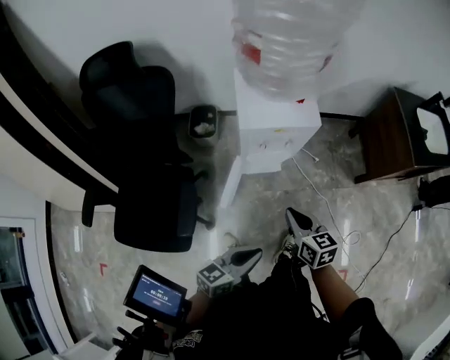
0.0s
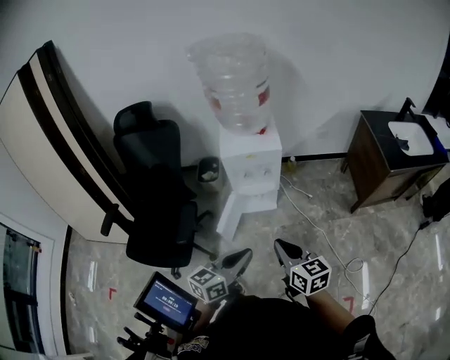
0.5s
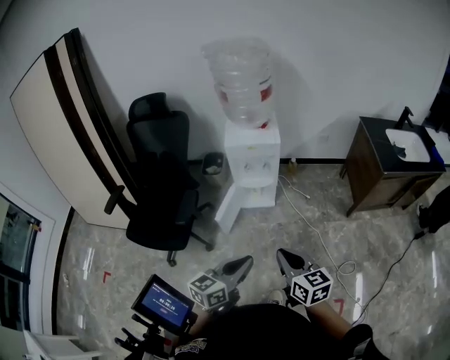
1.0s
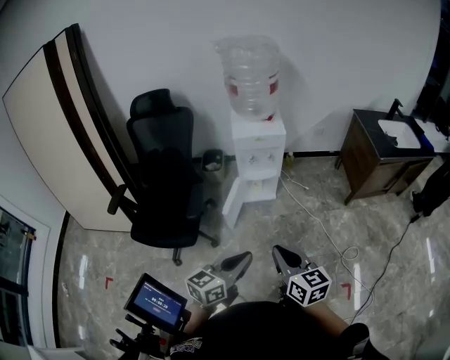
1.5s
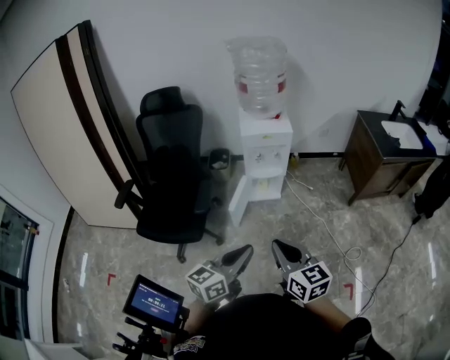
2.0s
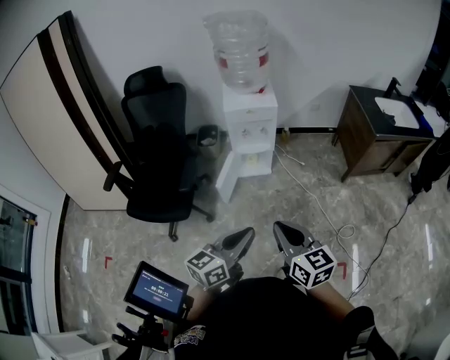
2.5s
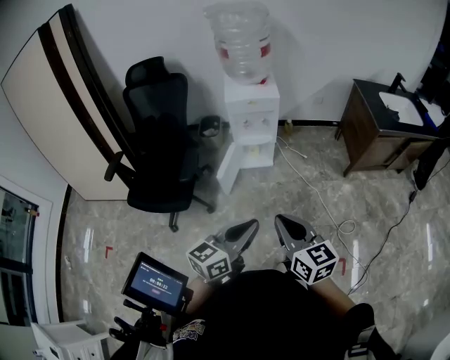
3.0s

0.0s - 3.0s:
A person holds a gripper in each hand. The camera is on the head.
0.0s - 1.5s: Both grippers travel together backward and upward, roughly 30 cm.
1.5s - 3.0s: The two grippers go roughly 5 cm to the right.

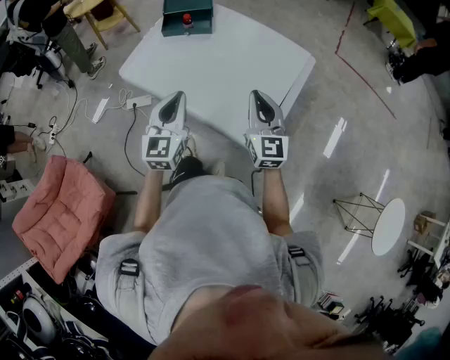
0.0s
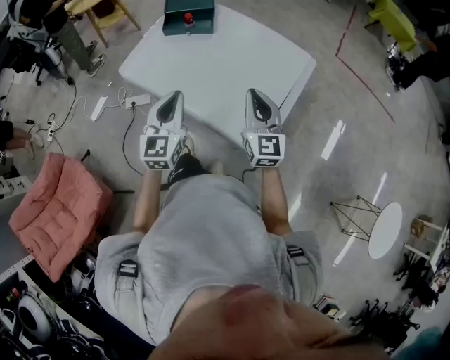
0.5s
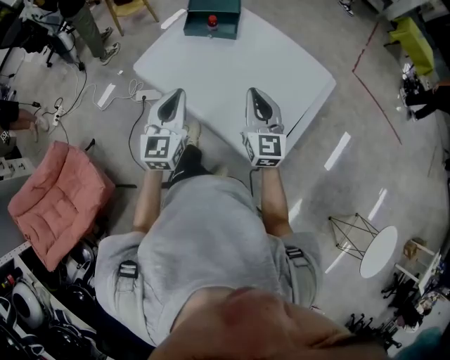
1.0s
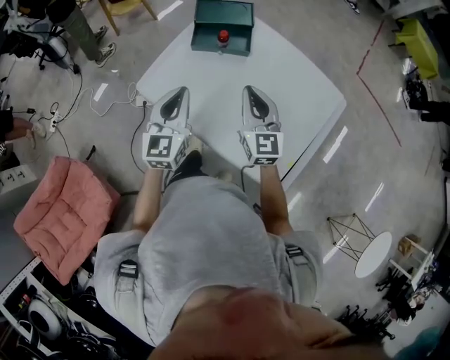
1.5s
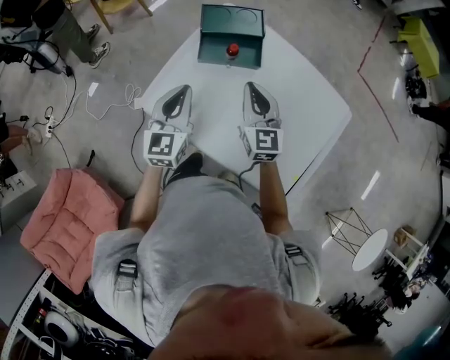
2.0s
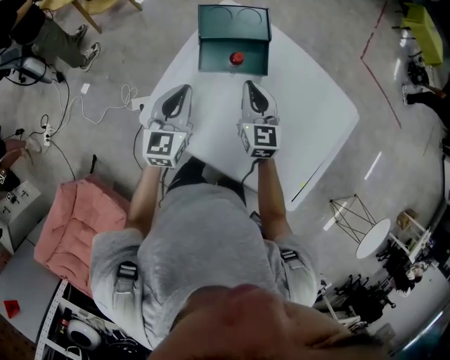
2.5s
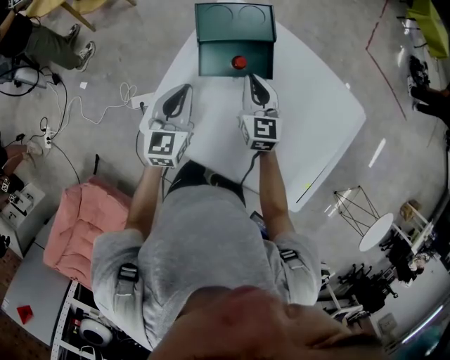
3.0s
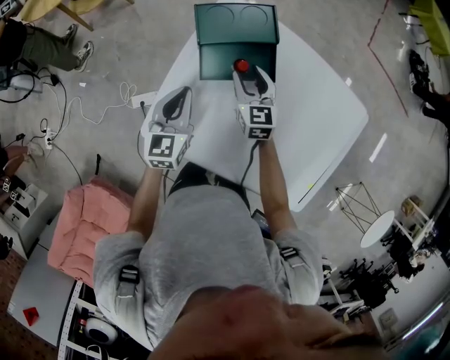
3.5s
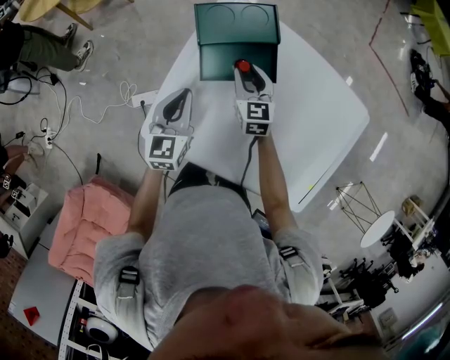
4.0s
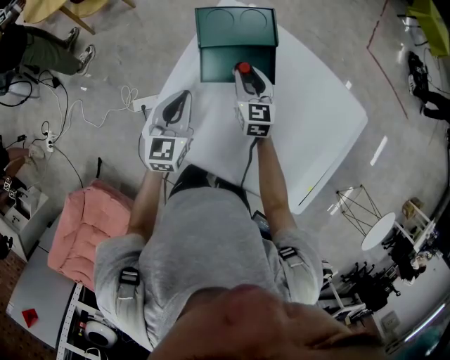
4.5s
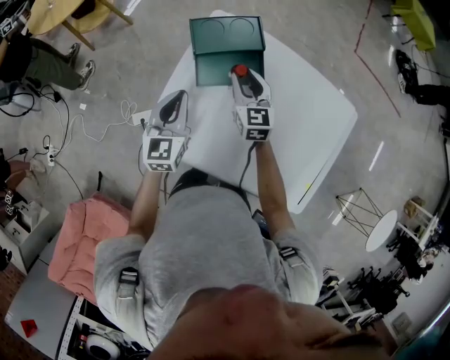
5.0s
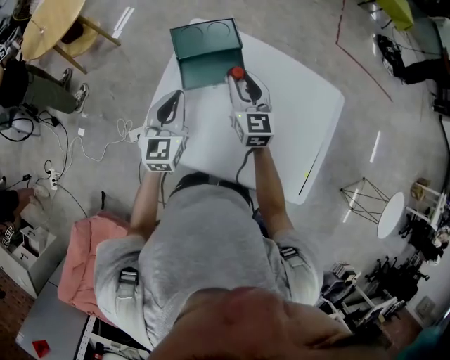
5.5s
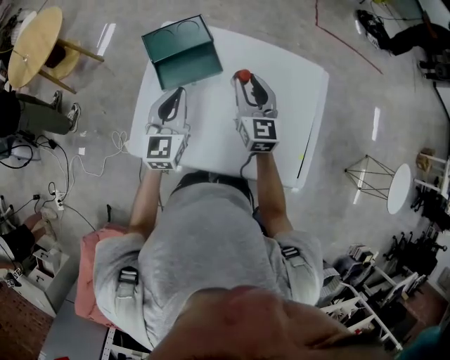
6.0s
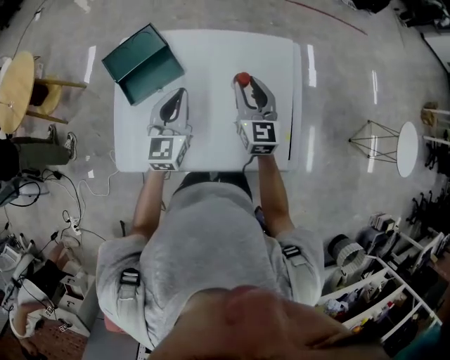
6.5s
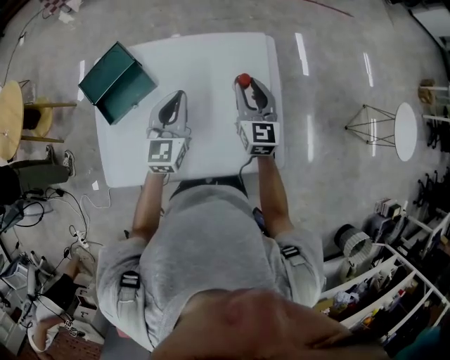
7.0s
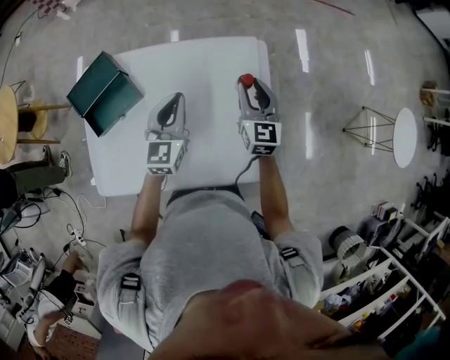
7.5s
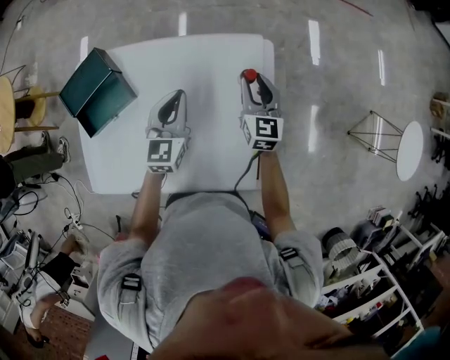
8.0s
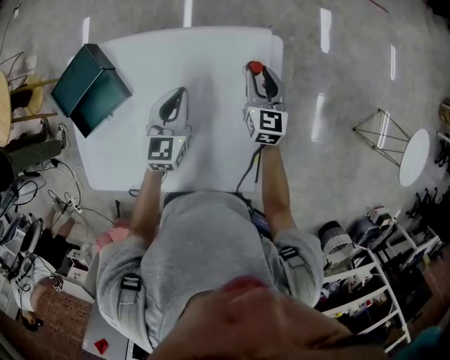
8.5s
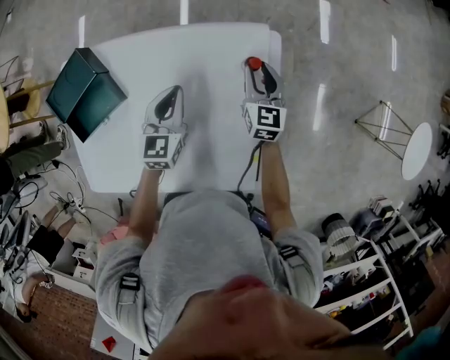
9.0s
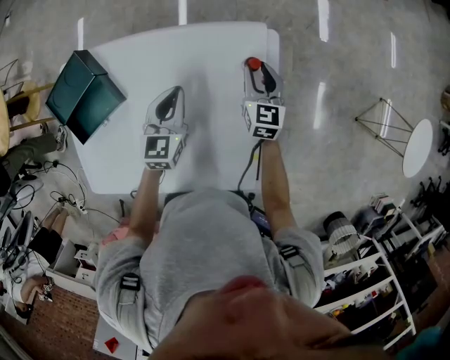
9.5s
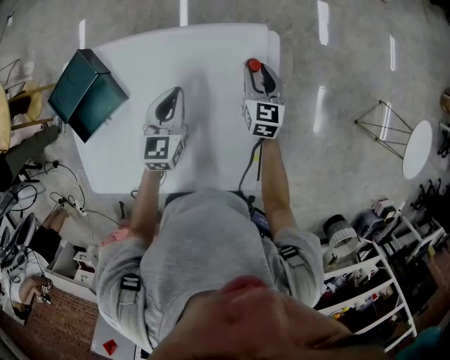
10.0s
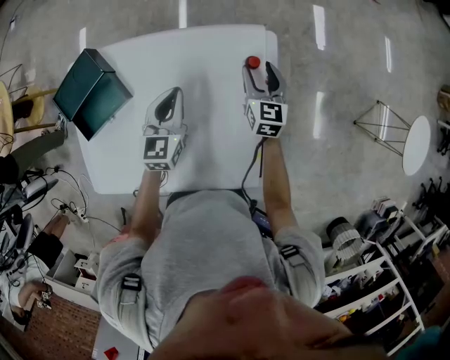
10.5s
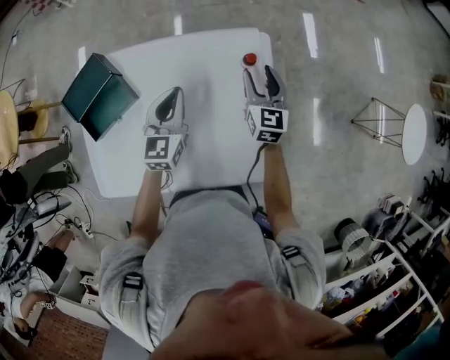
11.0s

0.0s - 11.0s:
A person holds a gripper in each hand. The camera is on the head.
0.0s - 2.0s: Both grippers travel together forward and to the left, approximately 35 cm.
2.0s - 3.5s: Both grippers move forward and downward, about 20 cm. The right gripper opens up.
3.5s - 5.5s: Both grippers move upward, roughly 10 cm.
5.5s - 7.5s: The right gripper changes place by some 40 cm, and rotates roughly 30 degrees, while the left gripper shifts by approximately 40 cm, and turns by some 30 degrees.
7.5s - 9.0s: The two grippers go roughly 15 cm downward and forward.
9.0s - 11.0s: Both grippers travel together upward and backward, roughly 10 cm. The right gripper opens.

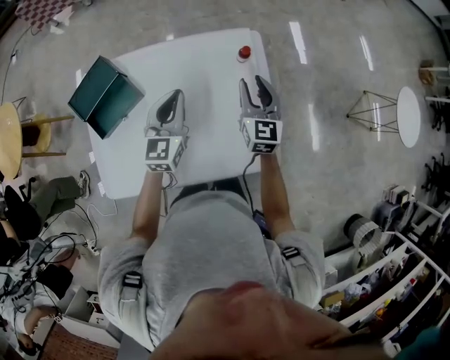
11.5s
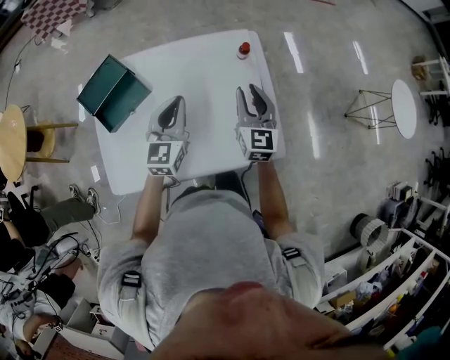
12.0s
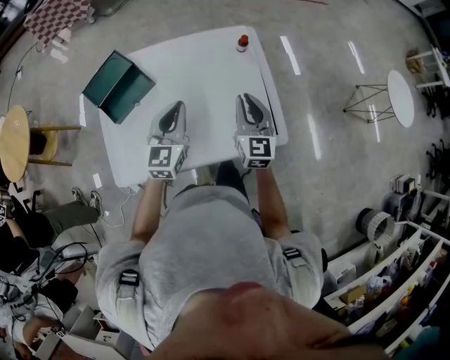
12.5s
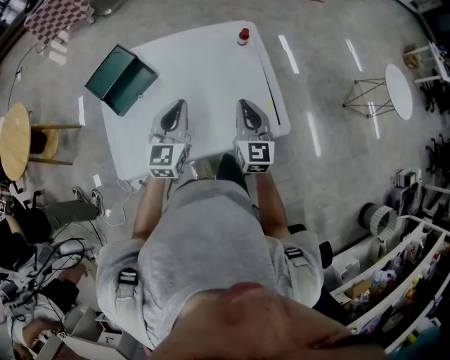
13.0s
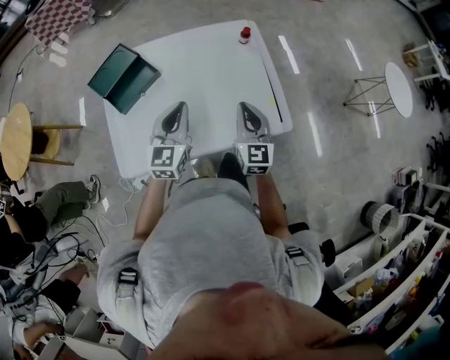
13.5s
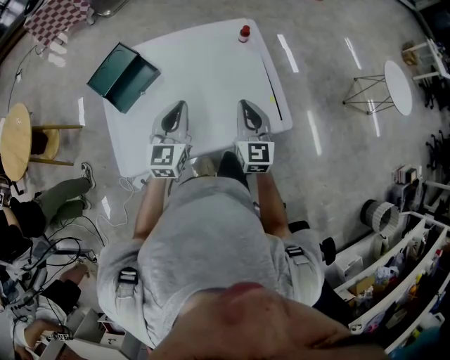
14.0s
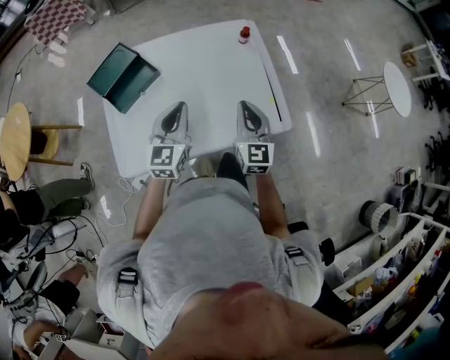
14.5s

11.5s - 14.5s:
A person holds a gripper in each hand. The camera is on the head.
11.5s - 13.0s: The two grippers go about 20 cm backward. The right gripper closes up.
13.0s - 14.5s: The grippers make only small movements.

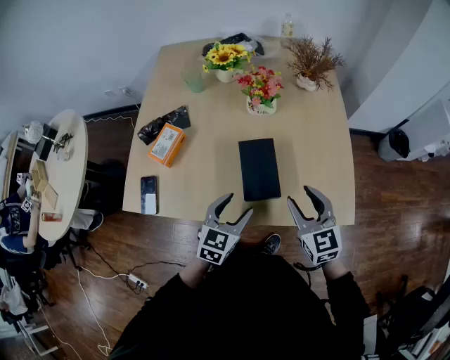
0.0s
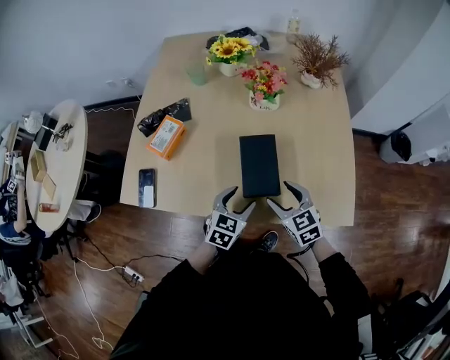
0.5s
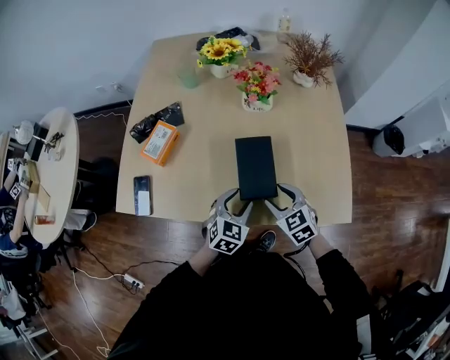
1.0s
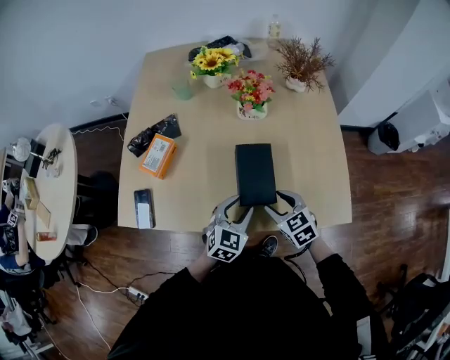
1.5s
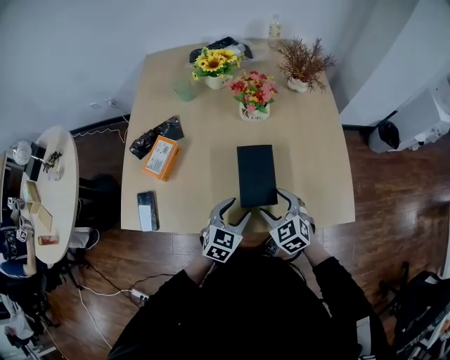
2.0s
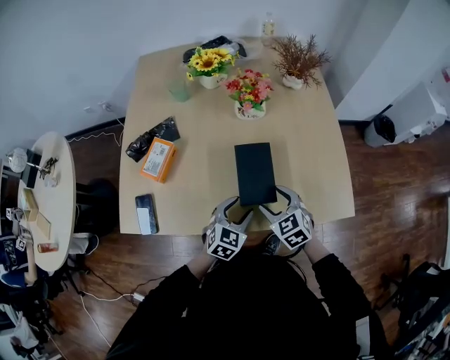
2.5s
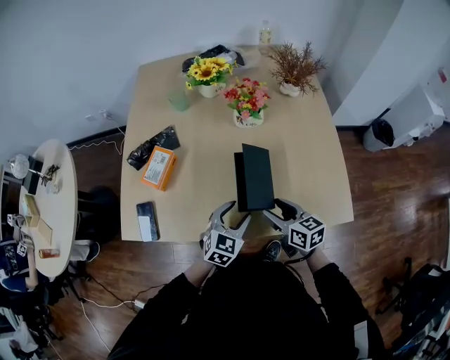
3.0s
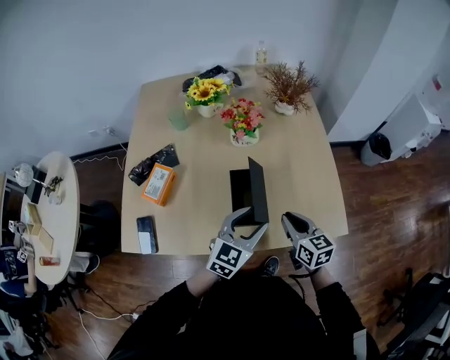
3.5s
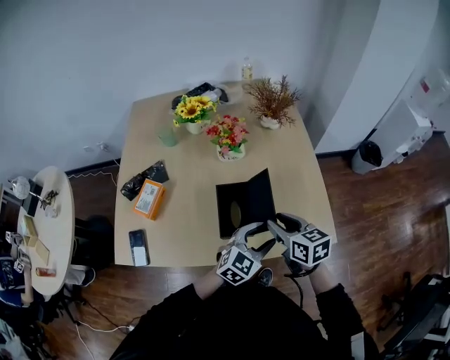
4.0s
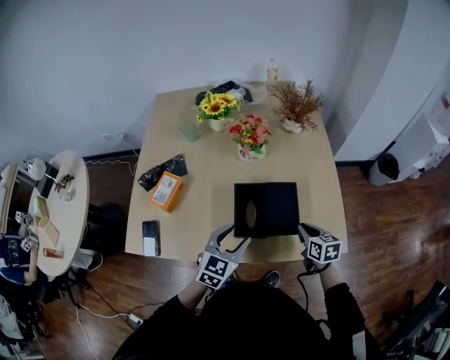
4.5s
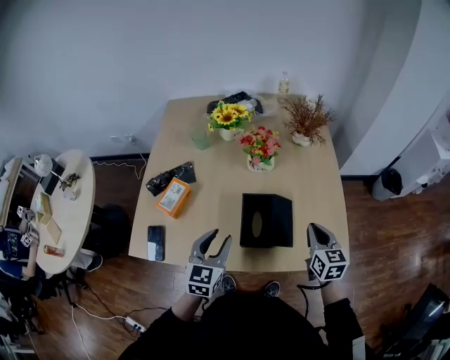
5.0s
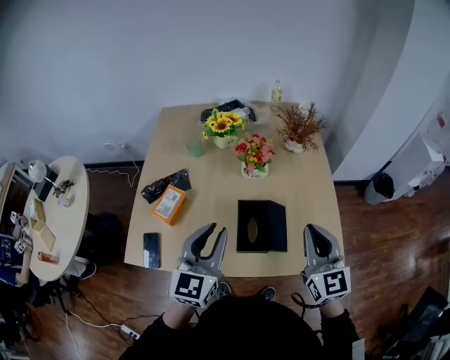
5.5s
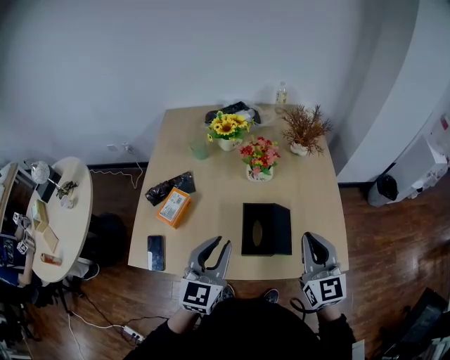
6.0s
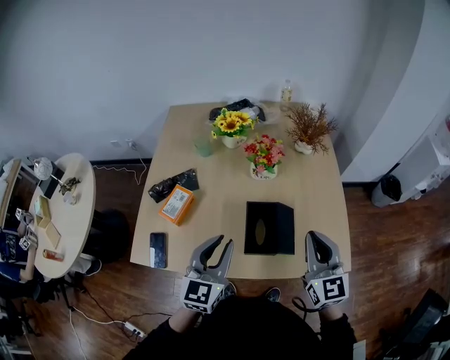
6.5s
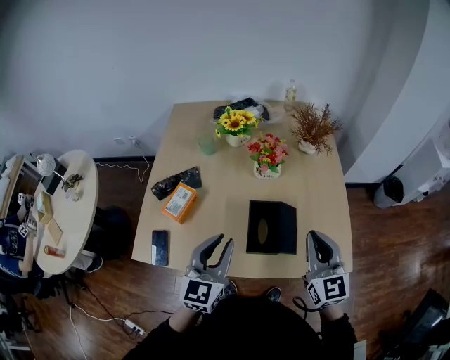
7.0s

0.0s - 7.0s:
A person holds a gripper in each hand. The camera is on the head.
0.0s - 2.0s: The right gripper moves downward and to the left, about 15 cm, turns by about 30 degrees, and opens. The left gripper goes approximately 5 cm downward.
2.0s - 3.5s: The right gripper heads to the right and upward, covering about 10 cm, rotates around the line of its fingers by roughly 40 degrees, clockwise from behind, and closes up, while the left gripper travels upward and to the right by approximately 15 cm.
3.5s - 5.0s: The right gripper goes up and down, approximately 10 cm each way, reversing 2 times, and opens, then closes again. The left gripper shifts some 15 cm to the left, and swivels about 30 degrees.
5.0s - 7.0s: The left gripper travels upward by about 10 cm; the right gripper shifts some 15 cm upward and to the left, and swivels about 30 degrees.

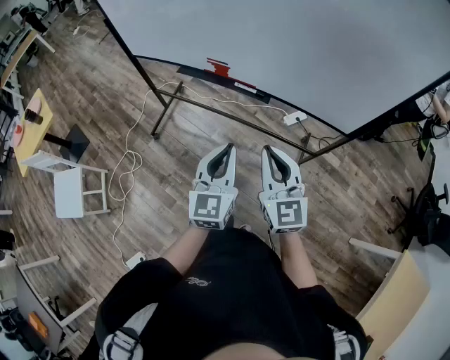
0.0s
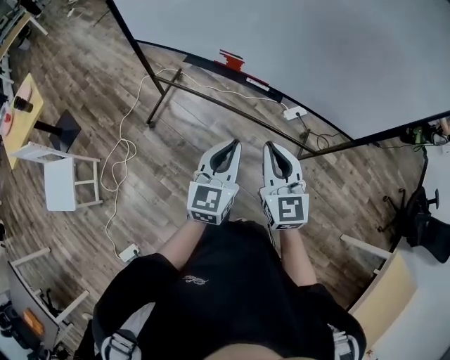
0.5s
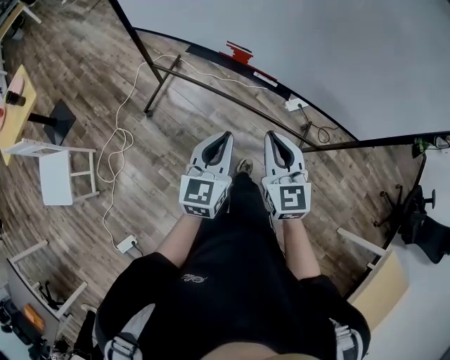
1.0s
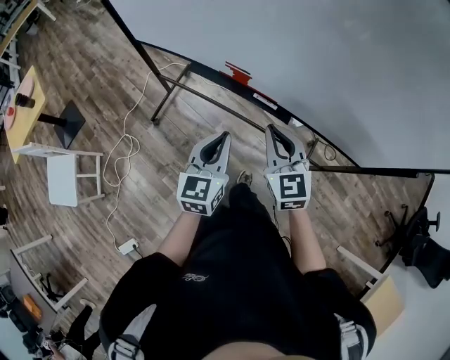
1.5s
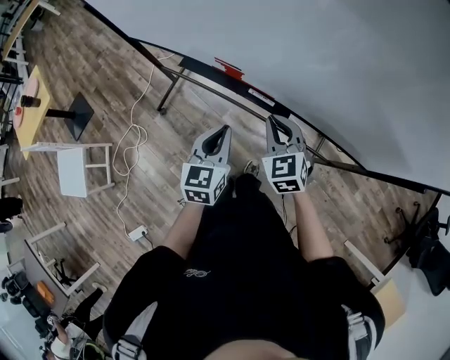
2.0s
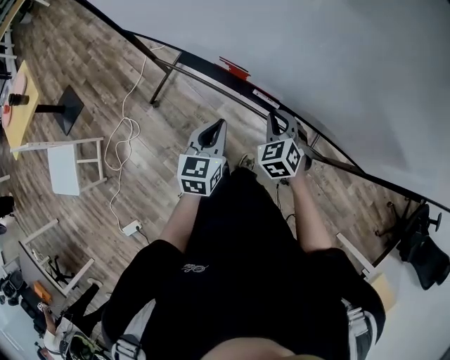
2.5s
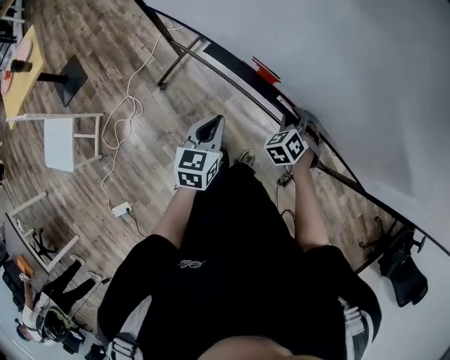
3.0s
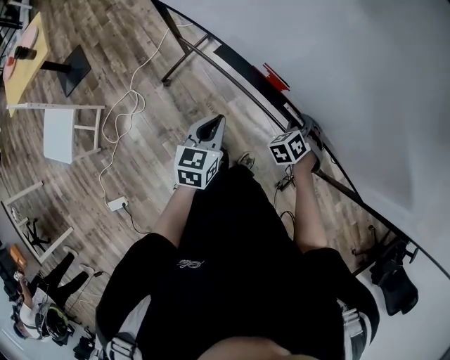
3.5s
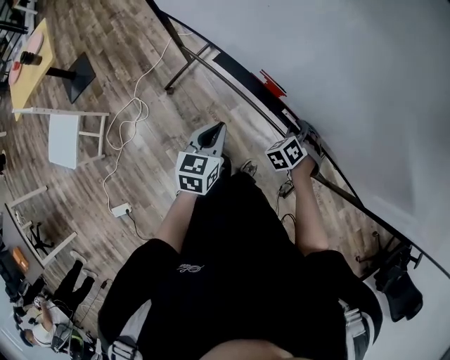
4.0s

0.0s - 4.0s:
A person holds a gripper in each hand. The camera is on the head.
0.0s - 2.0s: The two grippers go approximately 30 cm forward and downward. The right gripper swivels approximately 30 degrees.
2.0s - 4.0s: The left gripper moves to the left and downward, roughly 15 cm. The right gripper heads downward and forward, covering approximately 20 cm, and swivels some 40 degrees.
